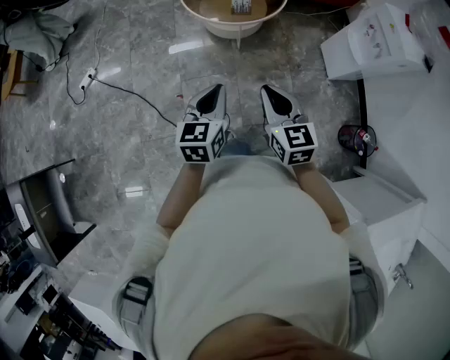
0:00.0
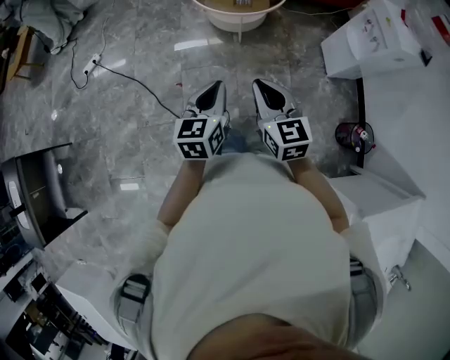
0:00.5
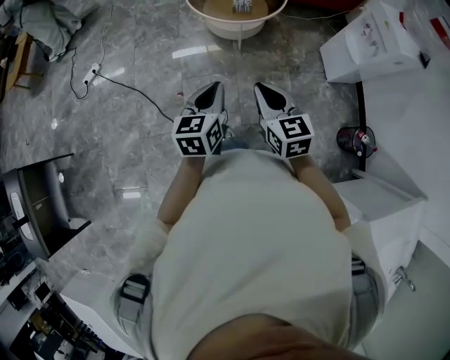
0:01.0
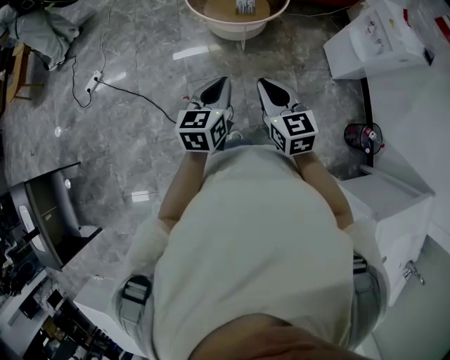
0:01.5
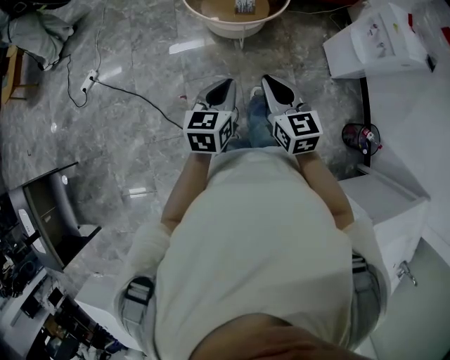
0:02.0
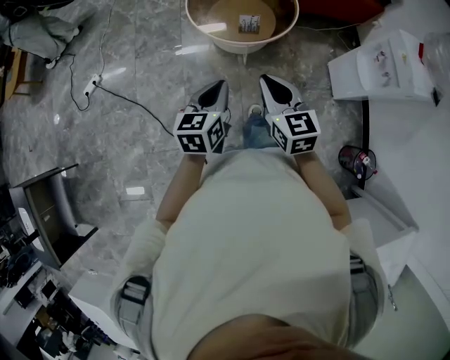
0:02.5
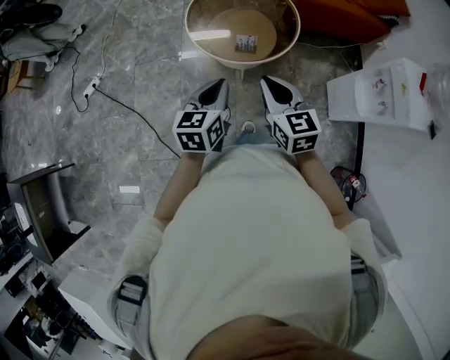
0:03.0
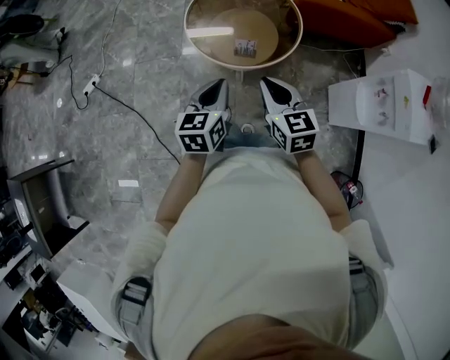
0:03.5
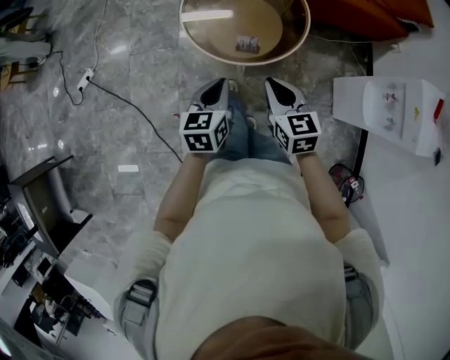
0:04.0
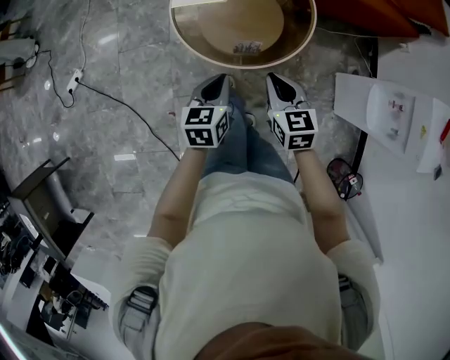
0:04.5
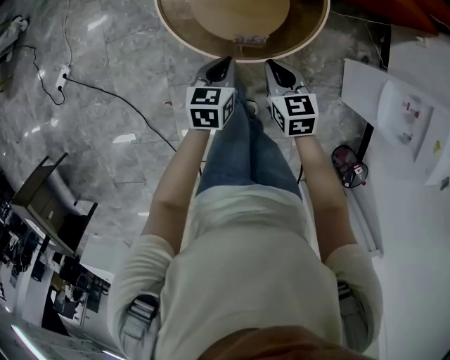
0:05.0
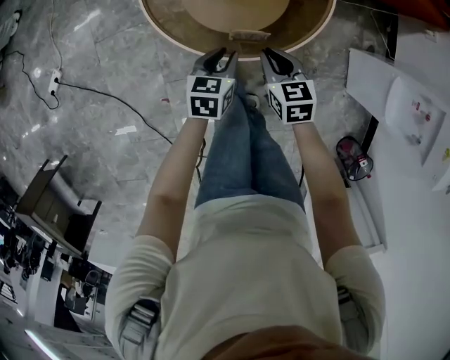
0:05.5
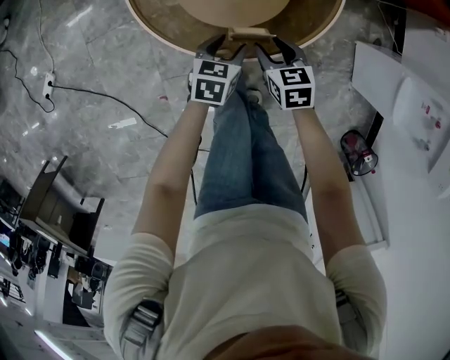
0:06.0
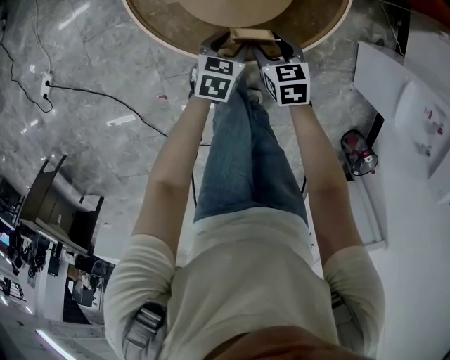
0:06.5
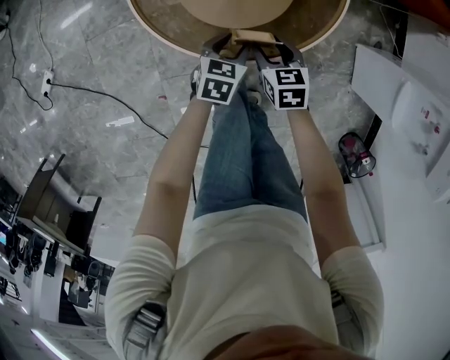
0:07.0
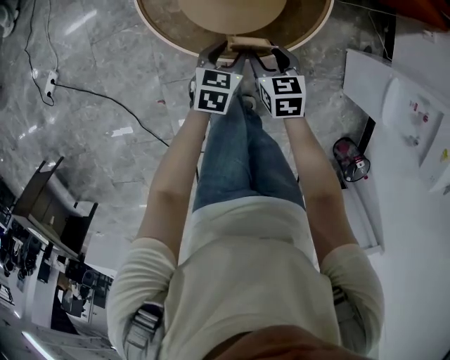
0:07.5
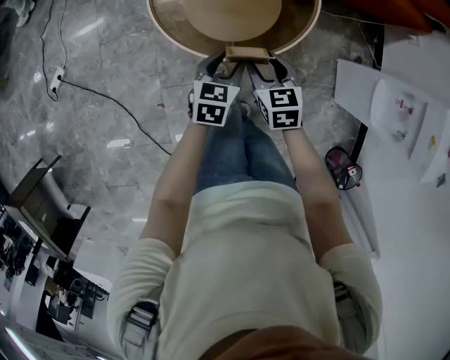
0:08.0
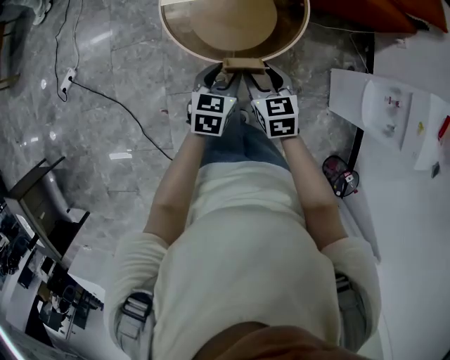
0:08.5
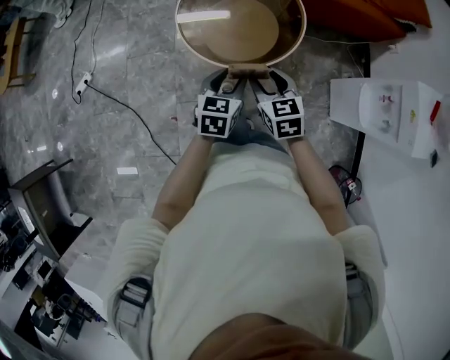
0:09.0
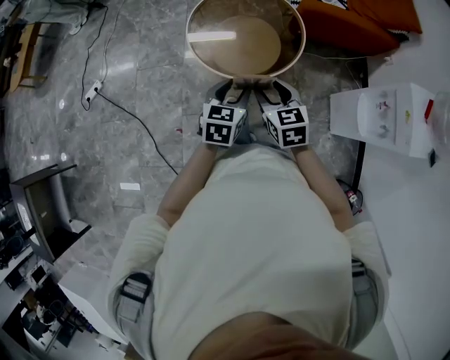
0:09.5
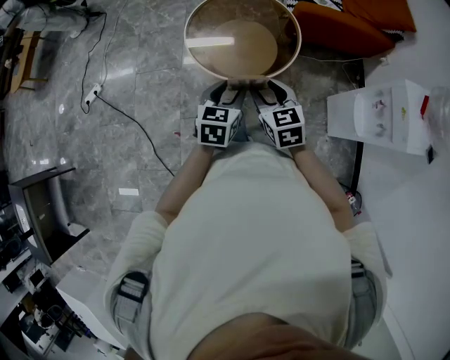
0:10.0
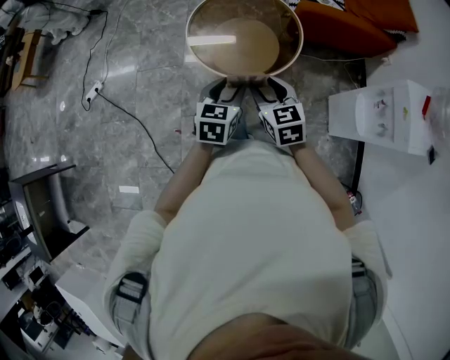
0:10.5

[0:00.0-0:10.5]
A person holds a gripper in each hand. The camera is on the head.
0:00.0 to 0:02.0: The right gripper moves about 10 cm backward and comes back. The left gripper reaches about 10 cm backward, then returns.
0:02.0 to 0:04.0: Both grippers travel together forward, about 30 cm.
0:04.0 to 0:06.5: The two grippers go approximately 40 cm downward and forward. The right gripper swivels about 20 degrees, and opens its fingers, while the left gripper rotates about 30 degrees, and opens.
0:06.5 to 0:08.5: Both grippers travel together upward, approximately 25 cm.
0:08.5 to 0:10.5: Both grippers move upward and backward, approximately 15 cm.

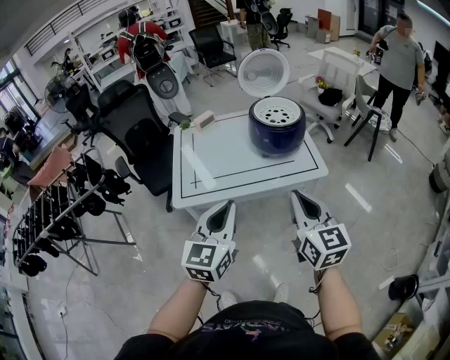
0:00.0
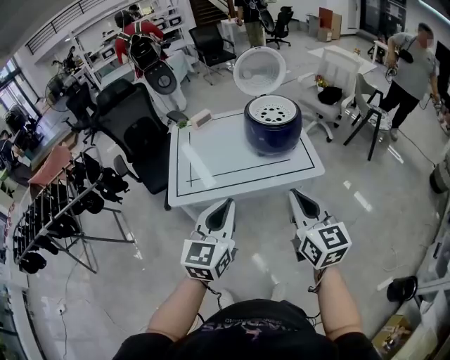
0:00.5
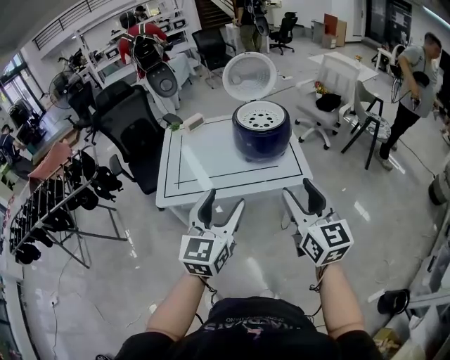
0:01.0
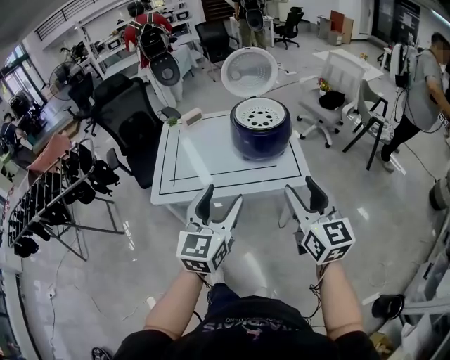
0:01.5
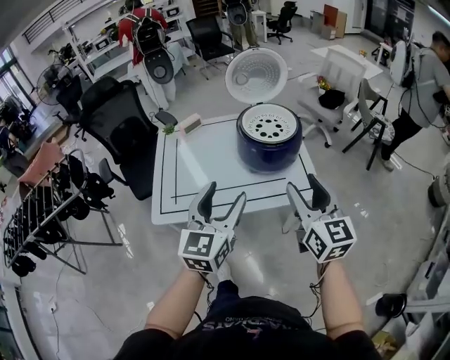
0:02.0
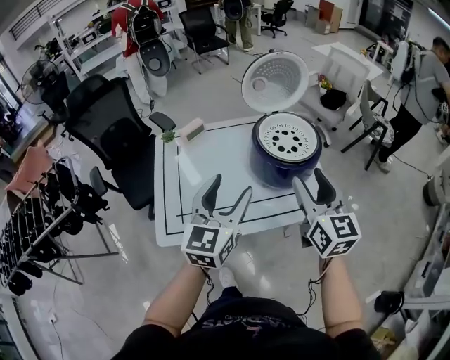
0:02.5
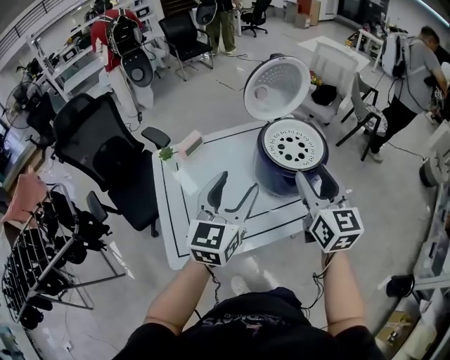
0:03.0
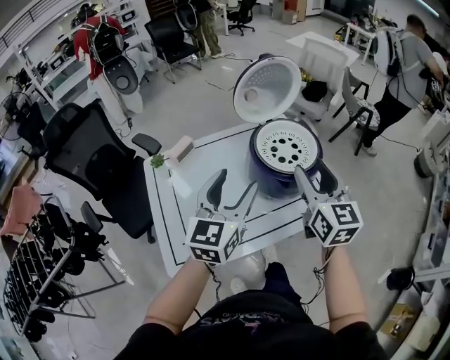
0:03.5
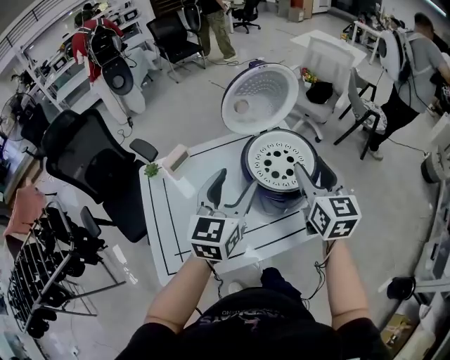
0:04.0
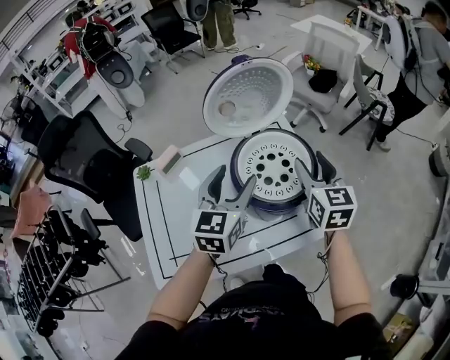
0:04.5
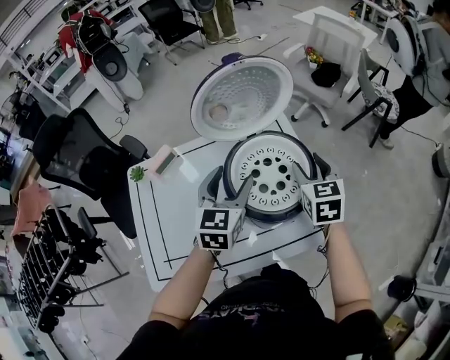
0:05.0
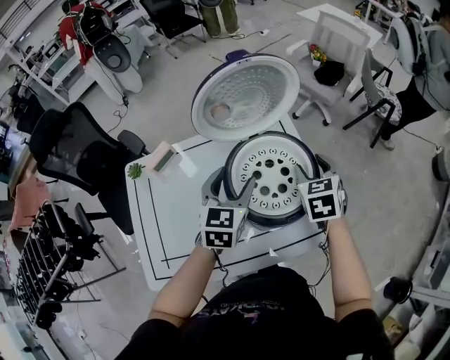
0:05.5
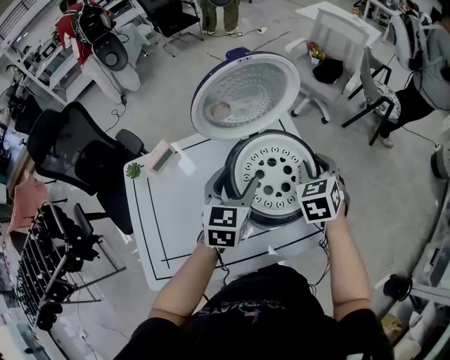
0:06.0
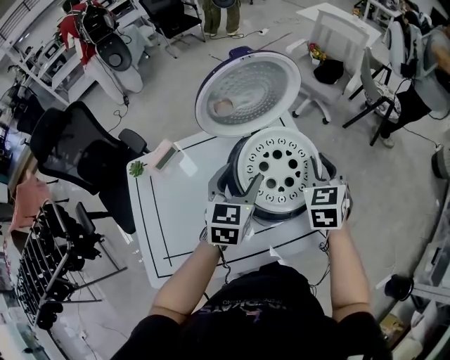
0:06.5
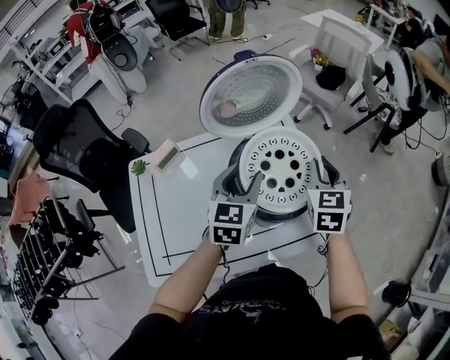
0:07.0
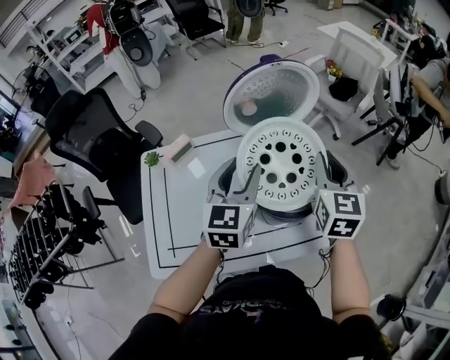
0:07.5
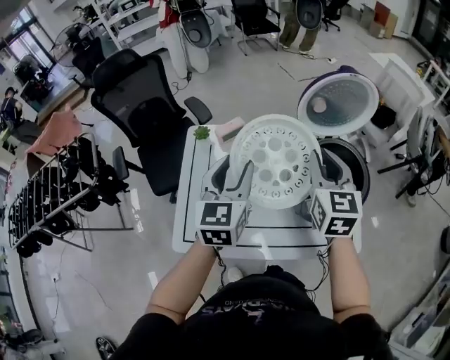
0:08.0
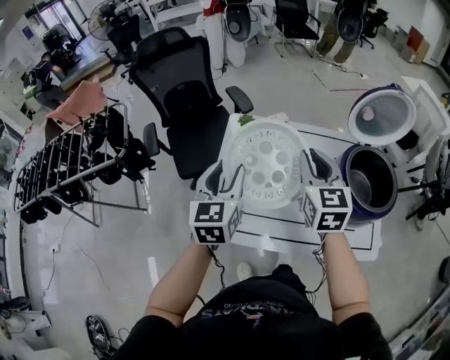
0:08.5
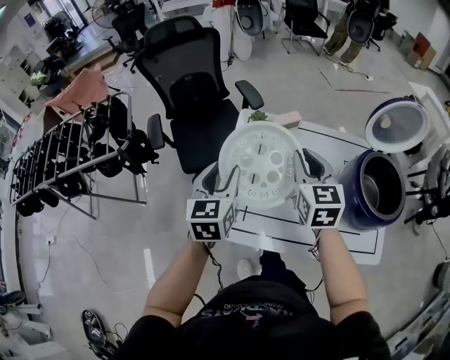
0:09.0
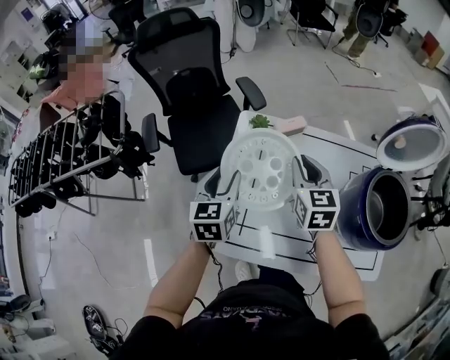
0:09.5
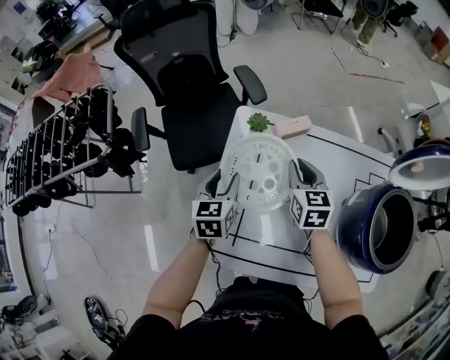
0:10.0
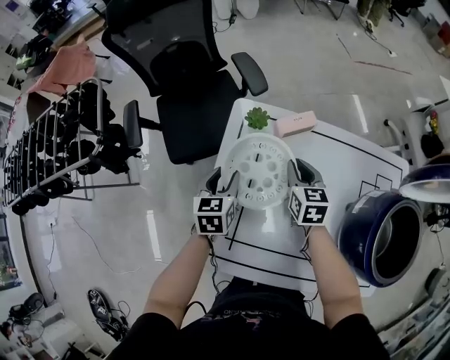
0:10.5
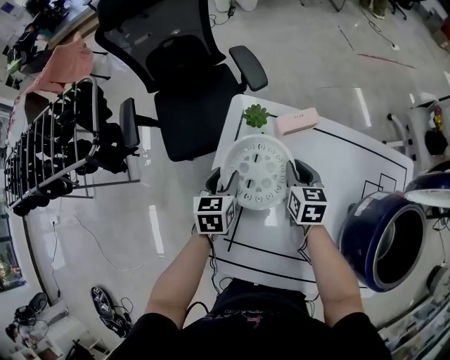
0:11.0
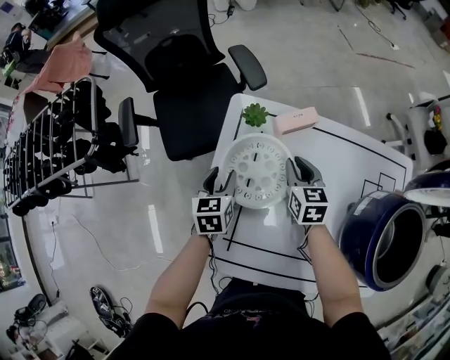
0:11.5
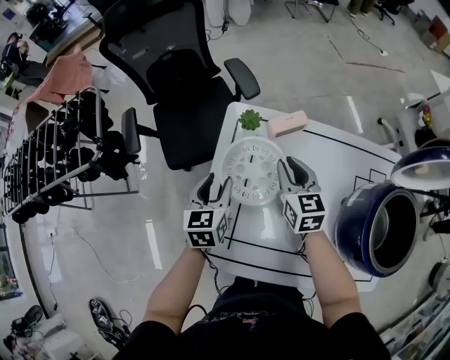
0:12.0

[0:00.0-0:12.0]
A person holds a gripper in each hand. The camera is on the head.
0:00.0 to 0:02.0: The grippers both shift forward and to the right by about 15 cm. The left gripper opens its fingers, while the right gripper opens its fingers.
0:02.0 to 0:04.0: The two grippers go about 25 cm forward.
0:04.0 to 0:06.0: The left gripper heads forward and downward, covering approximately 20 cm, while the right gripper shifts approximately 20 cm downward and forward, angles its fingers downward, by approximately 30 degrees, and closes up.
0:06.0 to 0:08.0: The right gripper shifts roughly 25 cm to the left, upward and backward, and swivels approximately 40 degrees; the left gripper travels to the left, backward and upward by approximately 25 cm, and turns by some 30 degrees.
0:08.0 to 0:10.0: The grippers both shift to the left, downward and forward by about 35 cm. The left gripper changes its angle by approximately 30 degrees, while the right gripper changes its angle by roughly 20 degrees.
0:10.0 to 0:12.0: The left gripper reaches roughly 10 cm downward, then returns. Meanwhile the right gripper reaches about 10 cm downward, then returns.

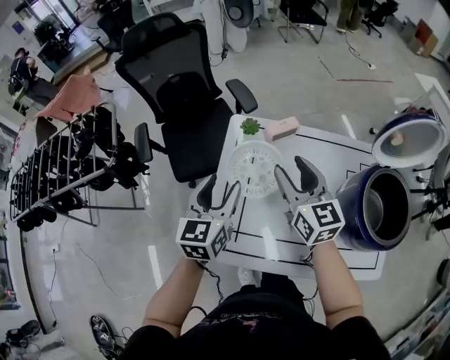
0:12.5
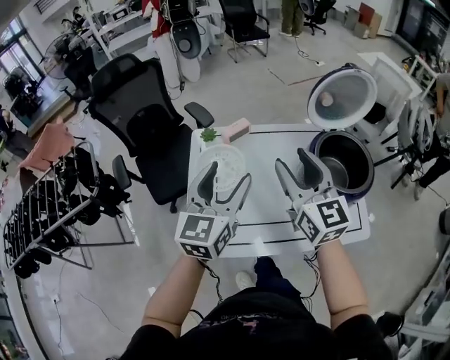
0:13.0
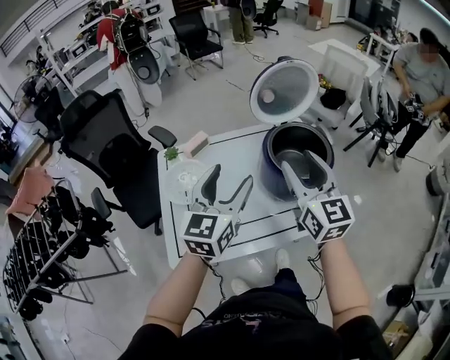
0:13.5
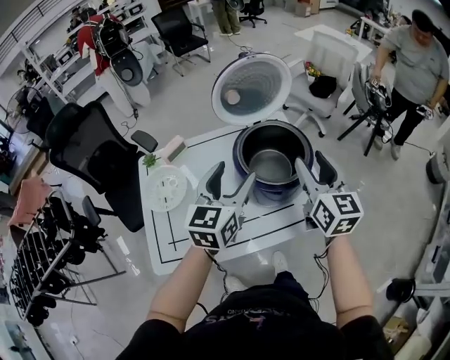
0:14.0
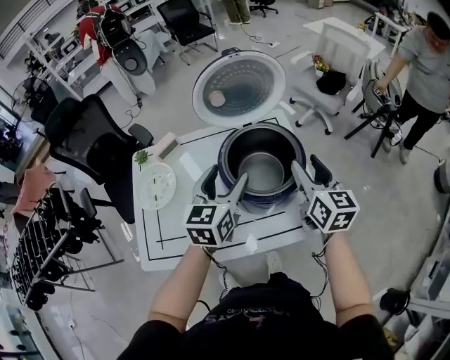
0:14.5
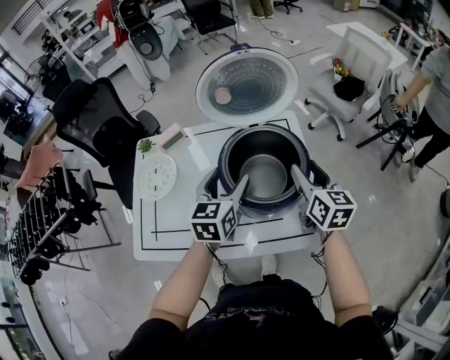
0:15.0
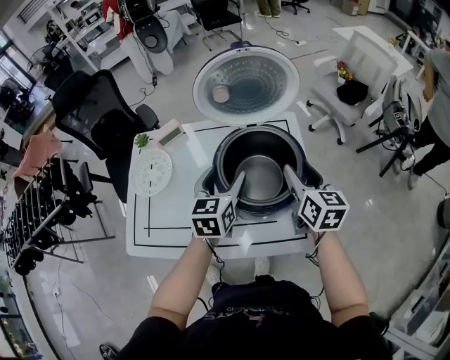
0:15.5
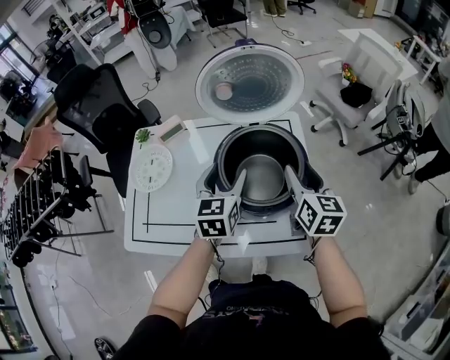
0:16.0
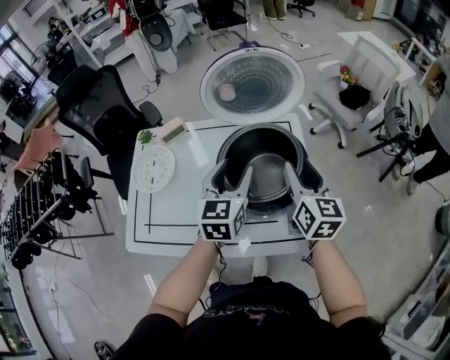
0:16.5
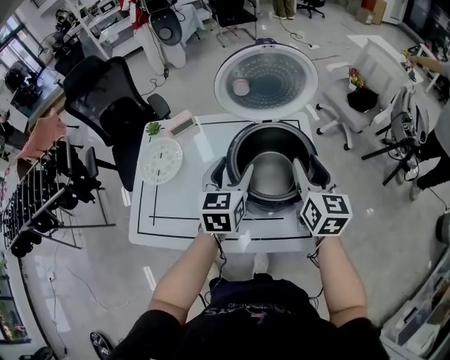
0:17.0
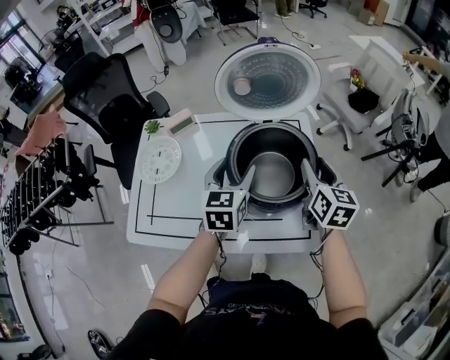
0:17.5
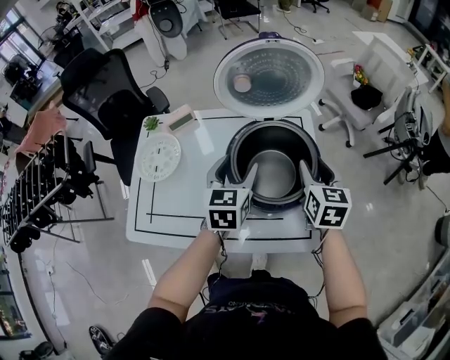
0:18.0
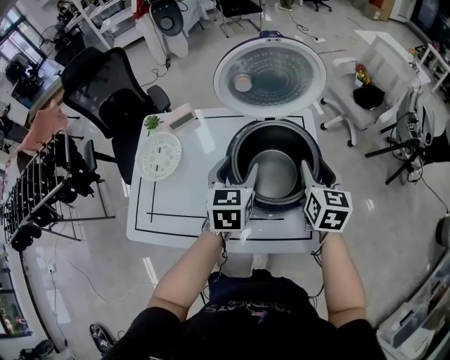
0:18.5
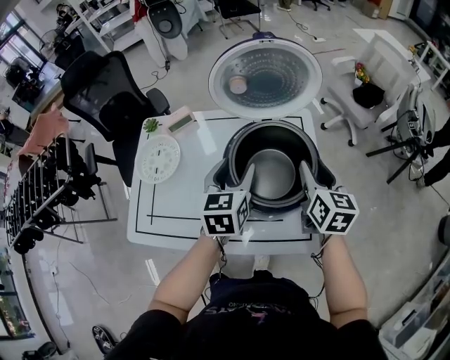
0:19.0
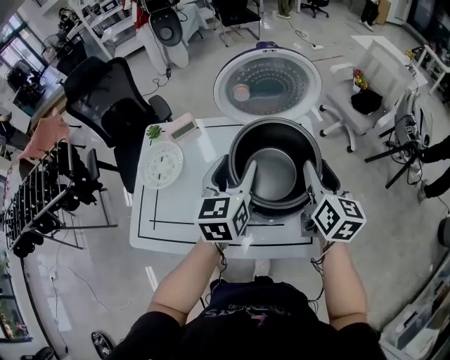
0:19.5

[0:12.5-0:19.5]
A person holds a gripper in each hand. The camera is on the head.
0:12.5 to 0:14.5: The pair of grippers is taken roughly 50 cm. The right gripper rotates approximately 30 degrees. Meanwhile the left gripper changes its angle by roughly 20 degrees.
0:14.5 to 0:16.0: The left gripper heads downward, covering approximately 5 cm. The right gripper heads forward and downward, covering about 10 cm.
0:16.0 to 0:17.5: The grippers move only a little.
0:17.5 to 0:19.5: The left gripper heads upward, covering some 5 cm.
